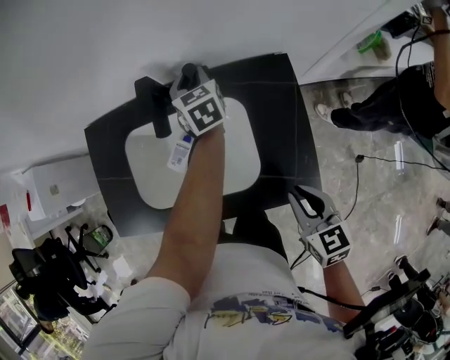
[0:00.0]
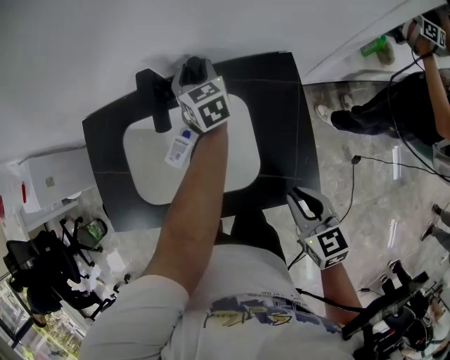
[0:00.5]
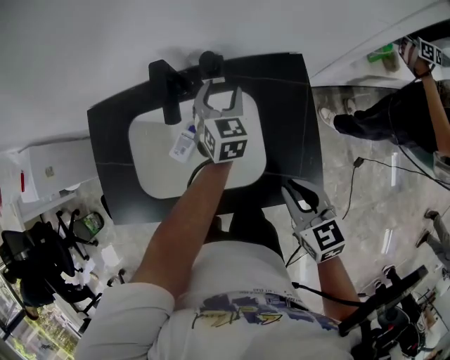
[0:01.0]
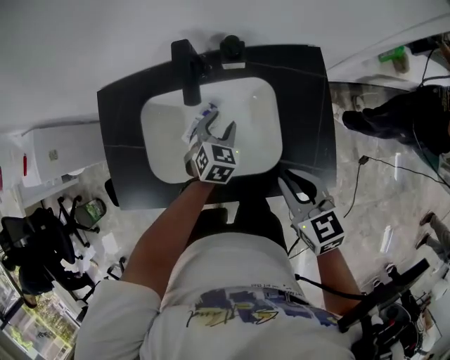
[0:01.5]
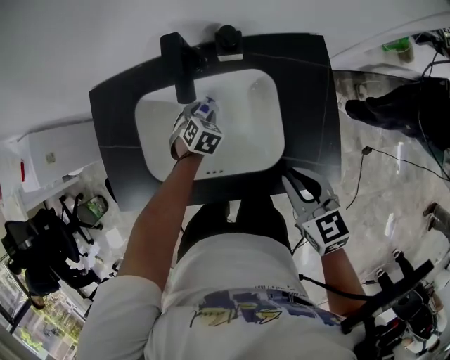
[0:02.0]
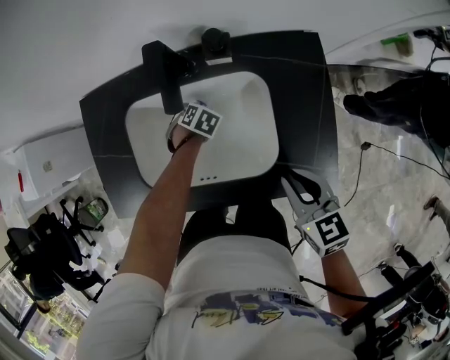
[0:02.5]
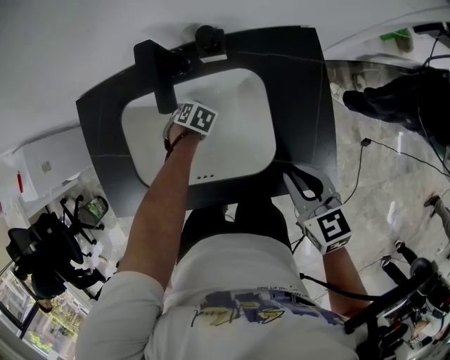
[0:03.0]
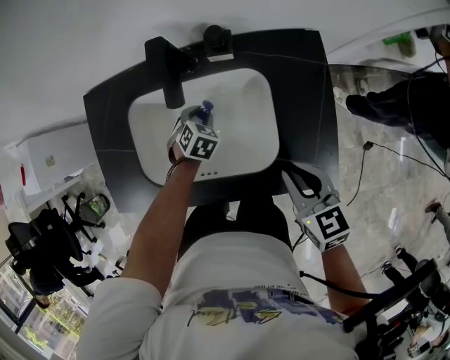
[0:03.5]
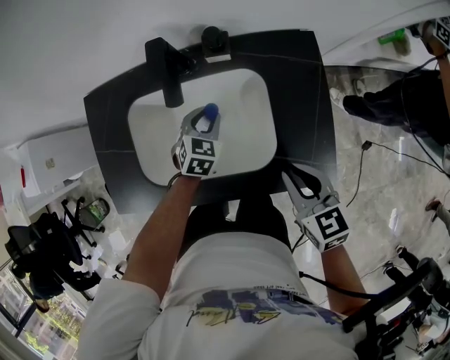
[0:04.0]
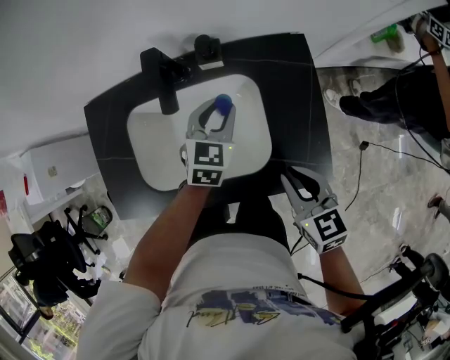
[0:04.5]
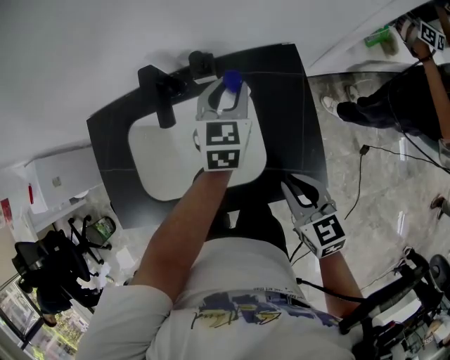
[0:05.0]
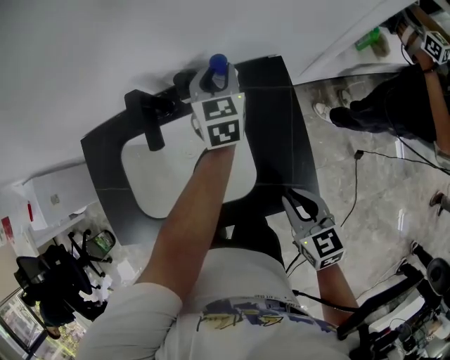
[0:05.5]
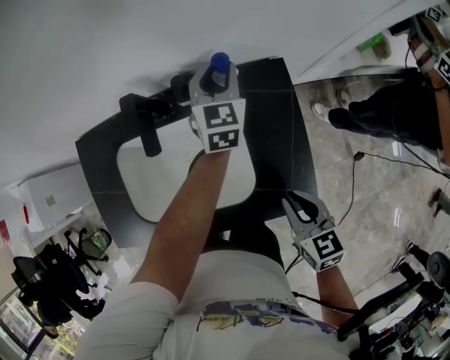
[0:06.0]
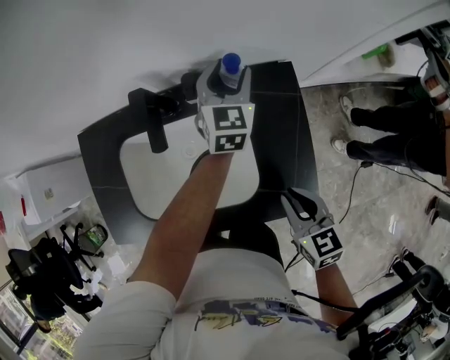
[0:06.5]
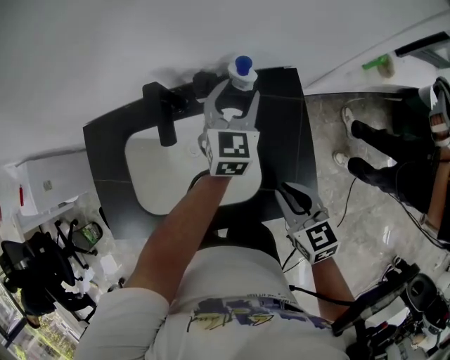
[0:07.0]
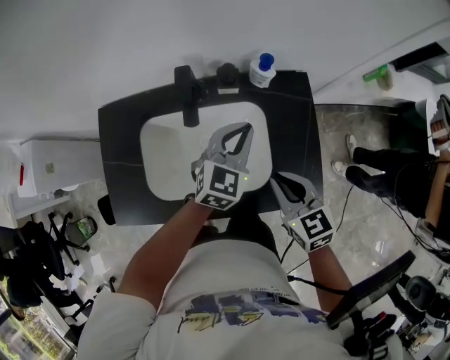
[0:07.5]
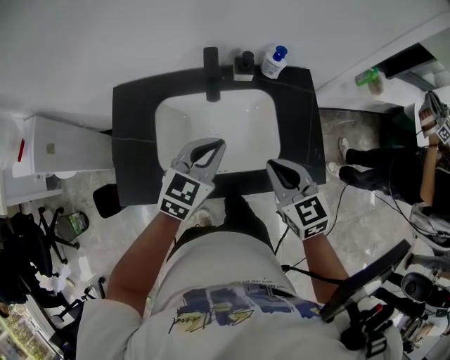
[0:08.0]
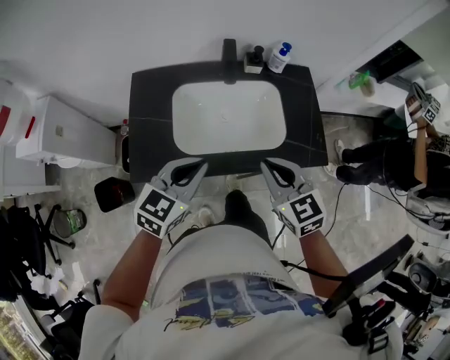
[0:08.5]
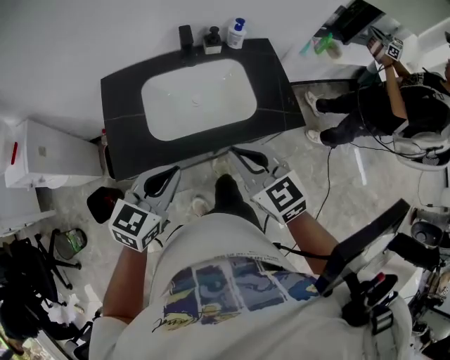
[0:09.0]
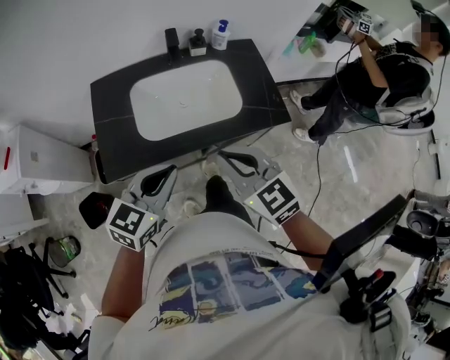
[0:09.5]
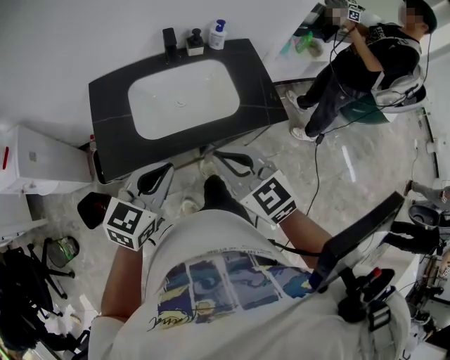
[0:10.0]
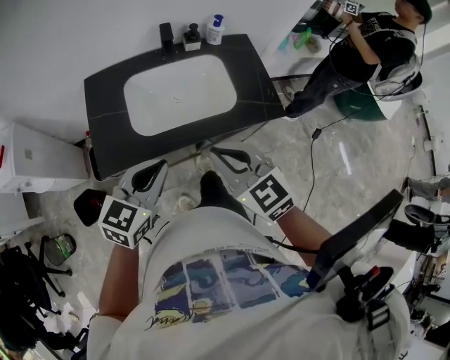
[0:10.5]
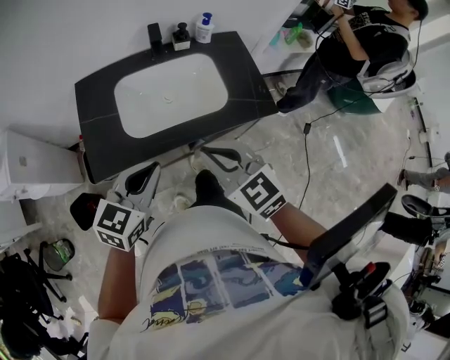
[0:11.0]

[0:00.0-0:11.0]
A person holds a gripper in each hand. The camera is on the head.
0:00.0 to 0:02.0: The left gripper shifts approximately 25 cm downward, backward and to the left, tips its fingers downward by about 30 degrees, and opens its fingers; the right gripper heads to the left, covering about 10 cm.
0:03.5 to 0:05.5: The left gripper goes some 35 cm upward, to the right and forward, and tilts its fingers roughly 40 degrees upward, while the right gripper heads to the right, covering some 5 cm.
0:05.5 to 0:07.5: The right gripper moves to the left, some 10 cm. The left gripper shifts about 15 cm backward, changes its angle by roughly 20 degrees, and closes up.
0:07.5 to 0:09.0: The left gripper is displaced backward and to the left by some 40 cm; the right gripper shifts some 30 cm backward, to the left and upward.
0:09.0 to 0:11.0: The grippers stay close to where they were, moving slightly.

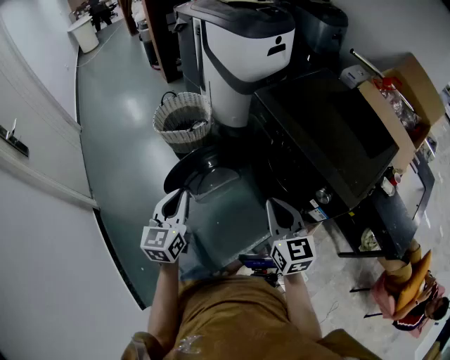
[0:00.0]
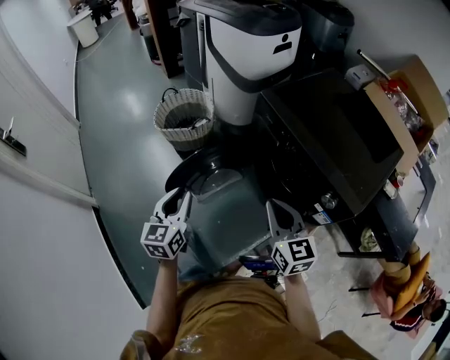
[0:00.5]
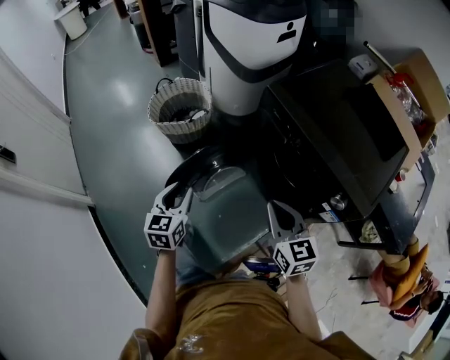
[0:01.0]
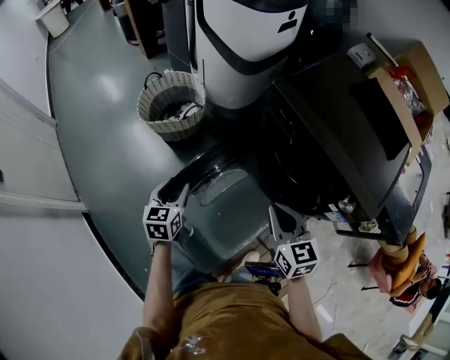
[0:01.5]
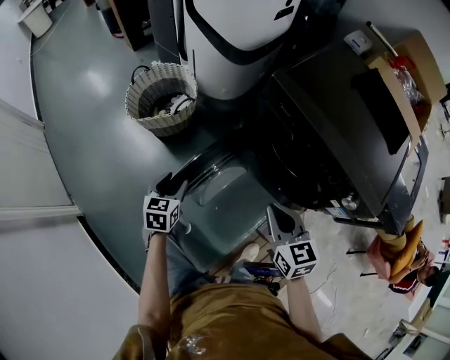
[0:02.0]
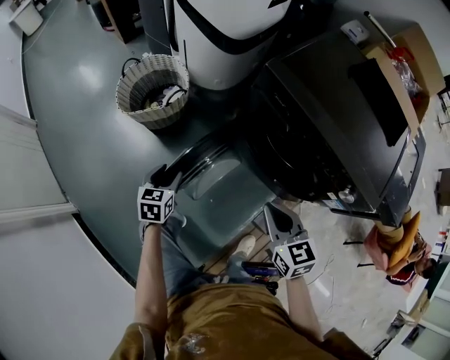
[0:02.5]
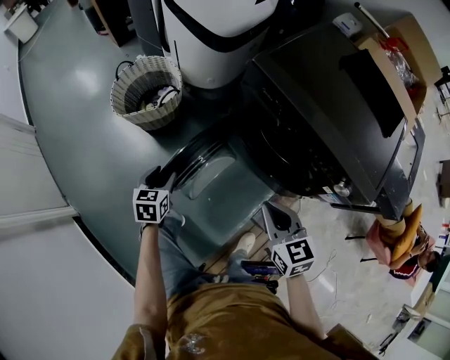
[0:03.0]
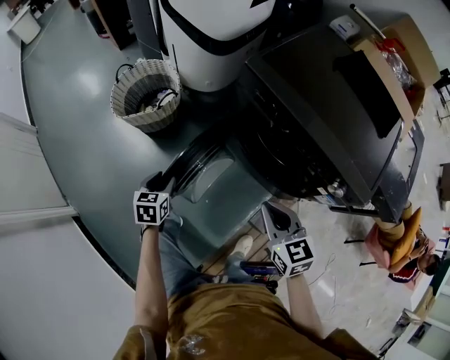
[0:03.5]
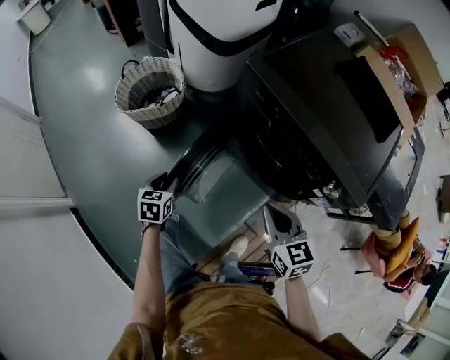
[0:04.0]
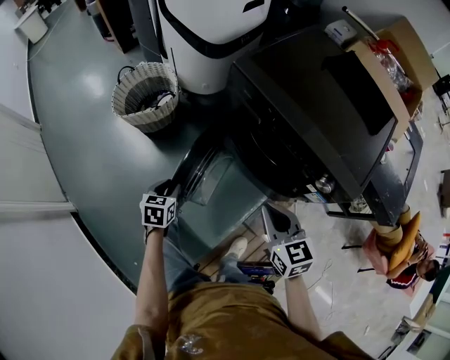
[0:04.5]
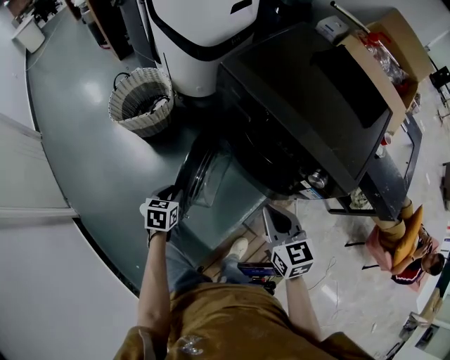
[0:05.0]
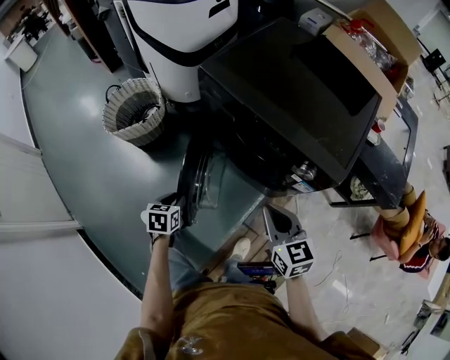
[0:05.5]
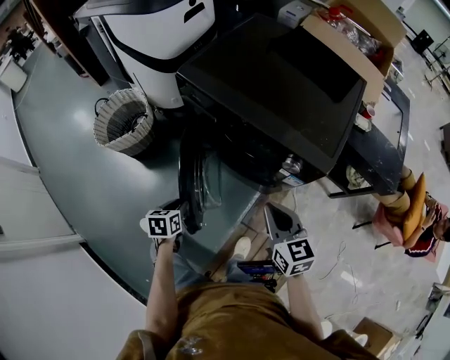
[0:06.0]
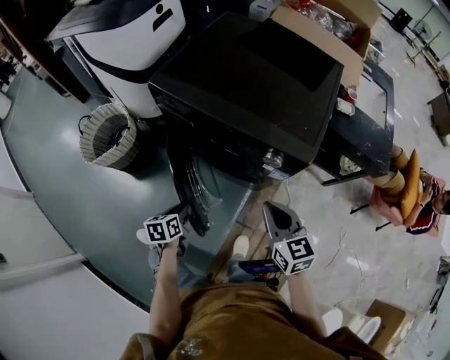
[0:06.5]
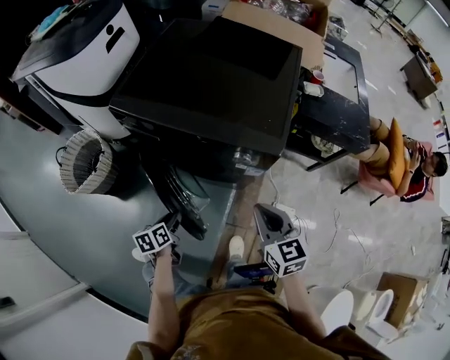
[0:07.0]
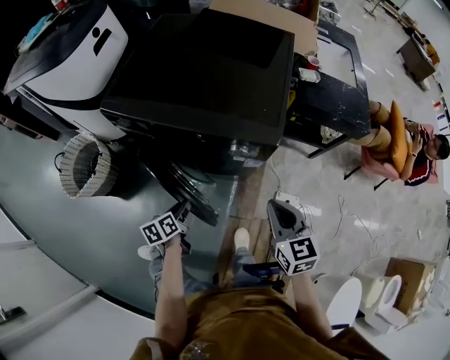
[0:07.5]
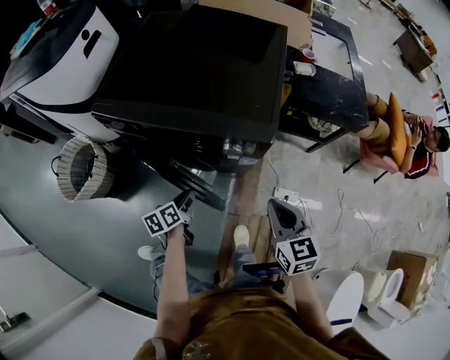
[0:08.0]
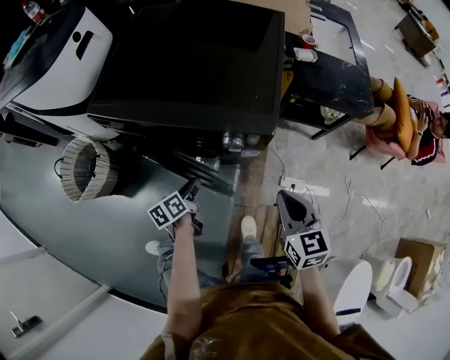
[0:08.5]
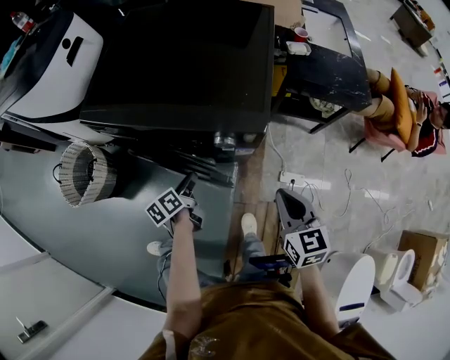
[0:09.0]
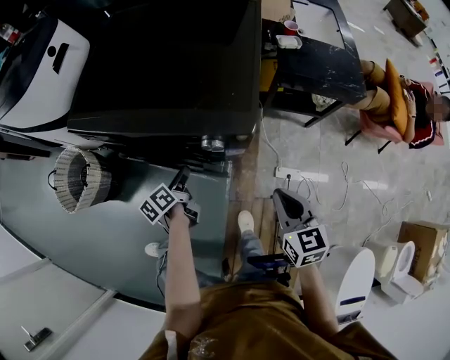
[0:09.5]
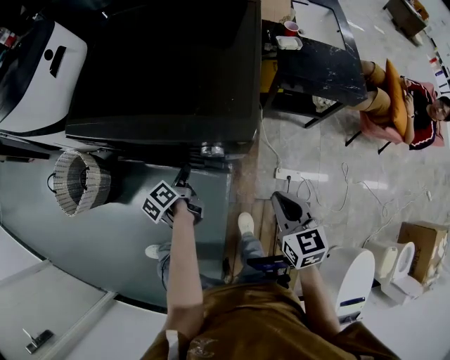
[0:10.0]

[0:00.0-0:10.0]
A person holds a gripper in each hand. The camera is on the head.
0:00.0 to 0:02.0: The right gripper shifts about 15 cm downward, forward and to the left; the left gripper shifts about 30 cm downward, forward and to the left, rotates approximately 30 degrees, and opens its fingers.
0:02.0 to 0:04.0: Both grippers travel together to the right, approximately 5 cm.
0:04.0 to 0:06.0: Both grippers move to the right, some 15 cm.
0:06.0 to 0:08.0: The left gripper travels to the right and forward by some 20 cm, and rotates roughly 20 degrees, while the right gripper heads to the right, covering some 15 cm, and changes its angle by roughly 20 degrees.
0:08.0 to 0:10.0: The left gripper moves forward, about 10 cm; the right gripper heads to the right, covering approximately 5 cm.

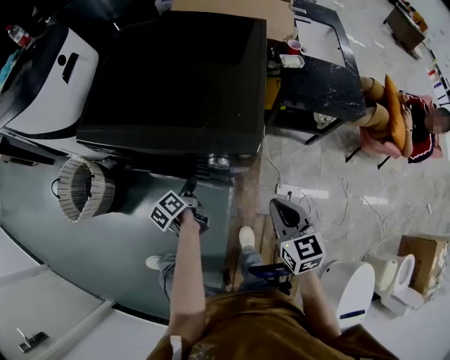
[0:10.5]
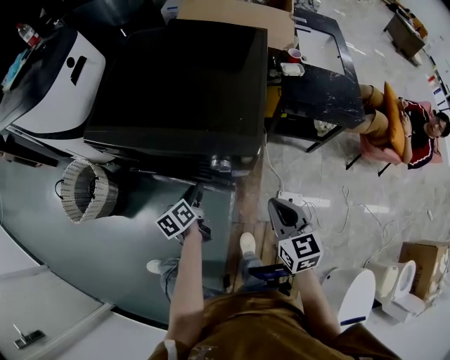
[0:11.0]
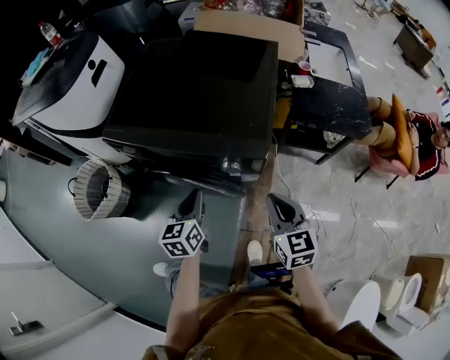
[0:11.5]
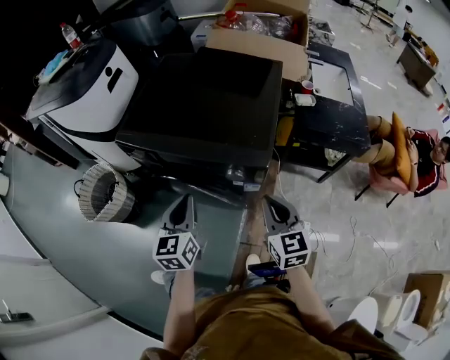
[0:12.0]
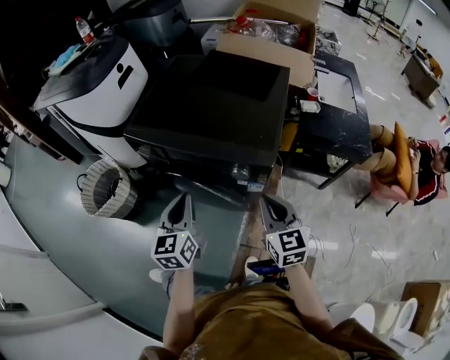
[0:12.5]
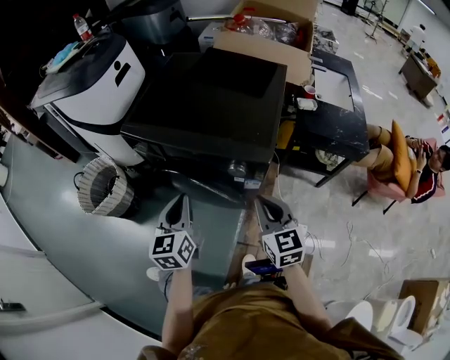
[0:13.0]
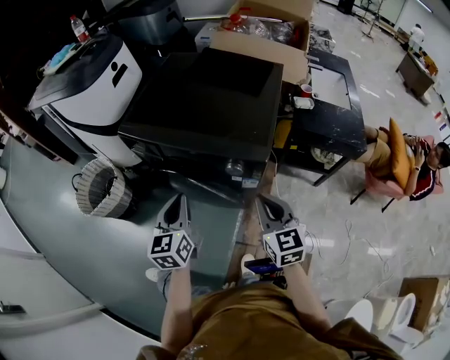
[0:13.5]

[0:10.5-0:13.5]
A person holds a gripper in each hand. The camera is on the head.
0:10.5 to 0:12.0: The right gripper goes roughly 5 cm upward. Meanwhile the left gripper moves upward, about 25 cm, rolls clockwise, seen from behind, by about 60 degrees, and closes its fingers.
0:12.0 to 0:13.5: The grippers stay close to where they were, moving slightly.

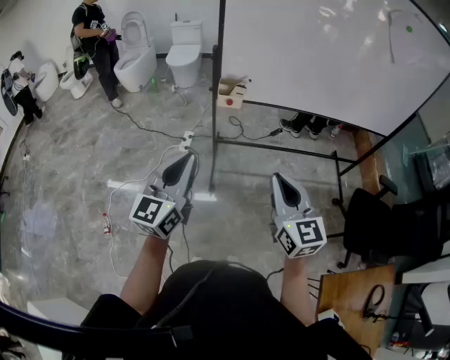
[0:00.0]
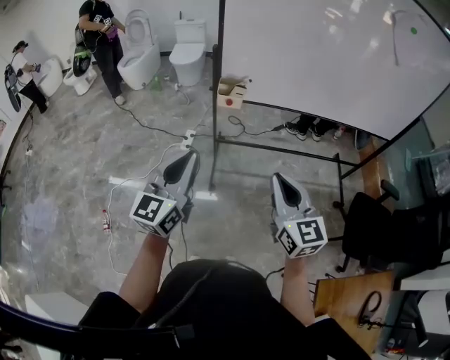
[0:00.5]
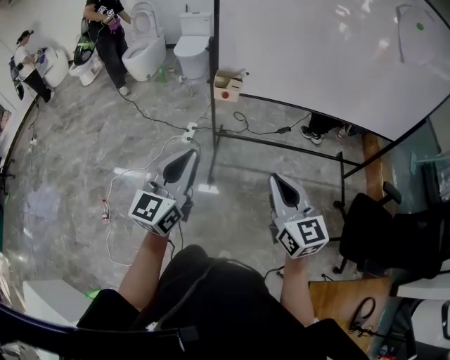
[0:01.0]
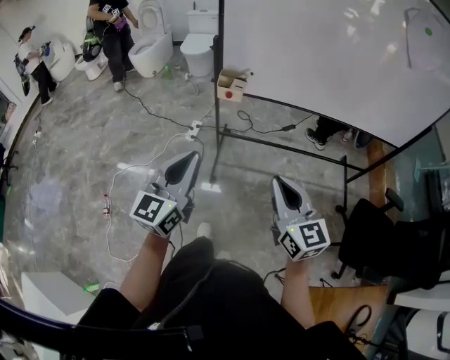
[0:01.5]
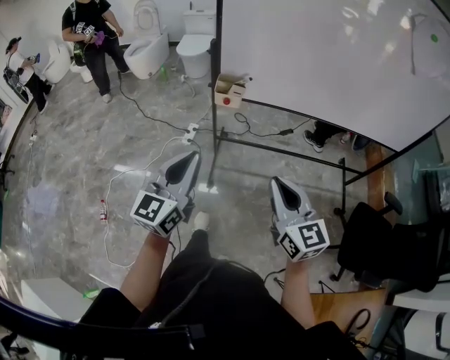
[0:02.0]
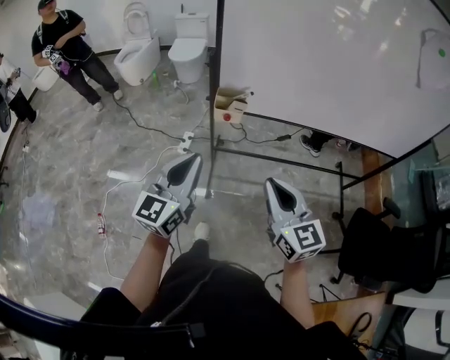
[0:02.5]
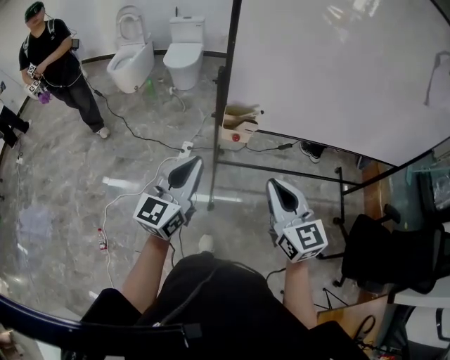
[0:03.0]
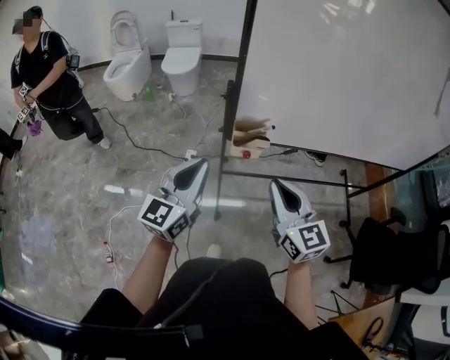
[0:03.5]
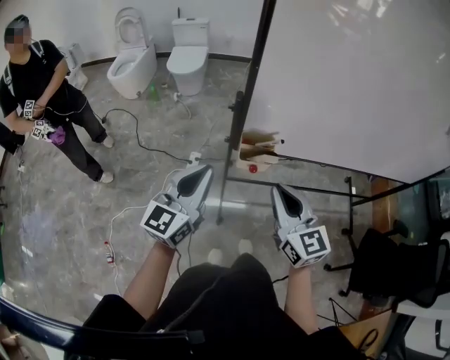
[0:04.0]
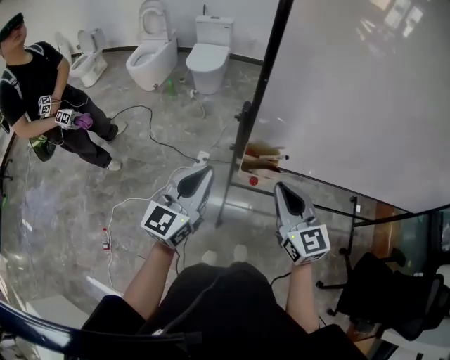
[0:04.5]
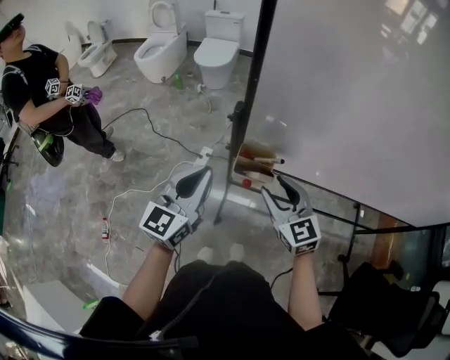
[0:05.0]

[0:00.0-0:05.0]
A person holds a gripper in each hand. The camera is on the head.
0:00.0 to 0:02.5: Both grippers move forward, some 15 cm.
0:02.5 to 0:05.0: Both grippers move forward, some 25 cm. The right gripper rotates about 20 degrees, and opens its fingers.